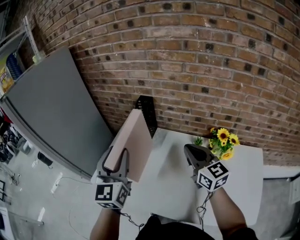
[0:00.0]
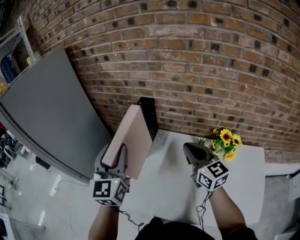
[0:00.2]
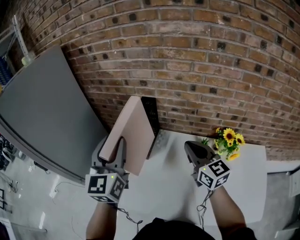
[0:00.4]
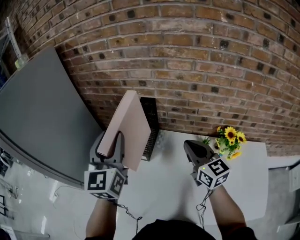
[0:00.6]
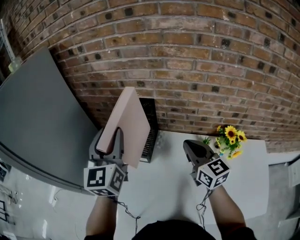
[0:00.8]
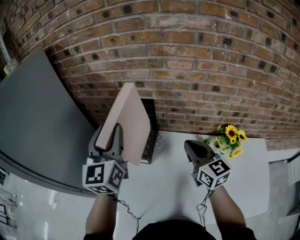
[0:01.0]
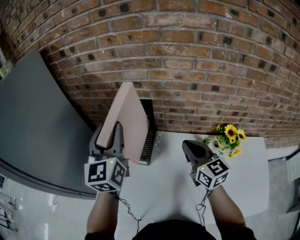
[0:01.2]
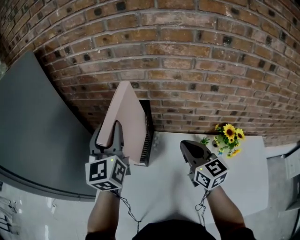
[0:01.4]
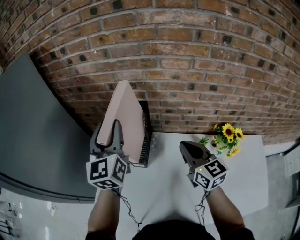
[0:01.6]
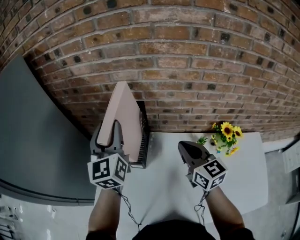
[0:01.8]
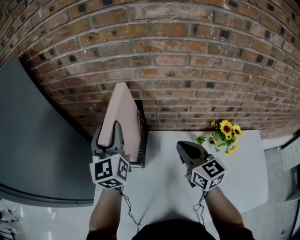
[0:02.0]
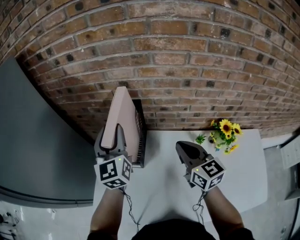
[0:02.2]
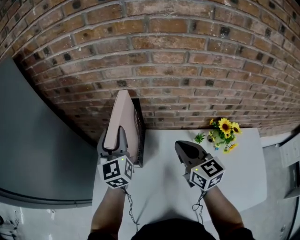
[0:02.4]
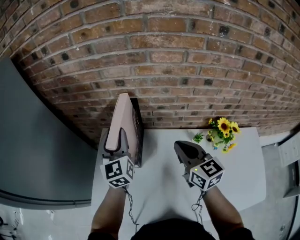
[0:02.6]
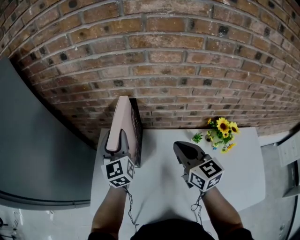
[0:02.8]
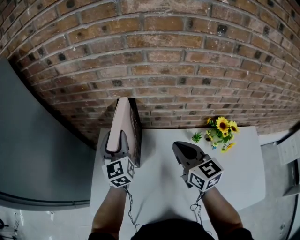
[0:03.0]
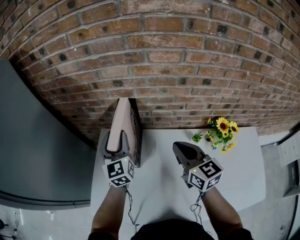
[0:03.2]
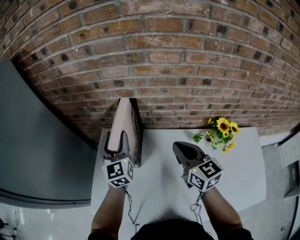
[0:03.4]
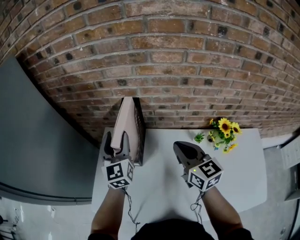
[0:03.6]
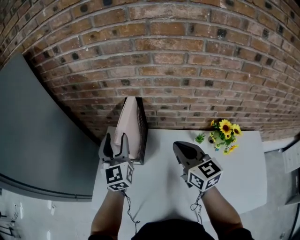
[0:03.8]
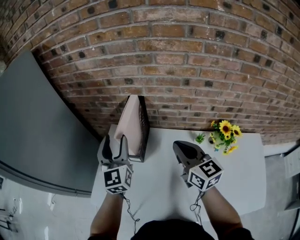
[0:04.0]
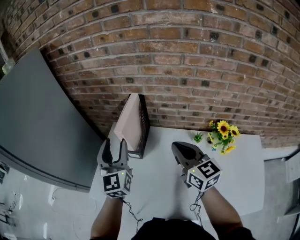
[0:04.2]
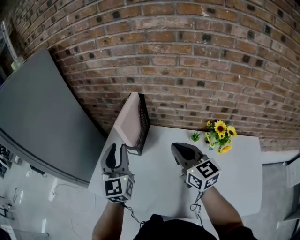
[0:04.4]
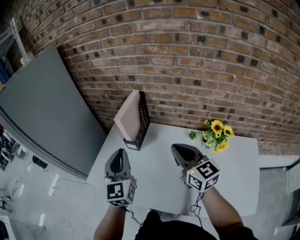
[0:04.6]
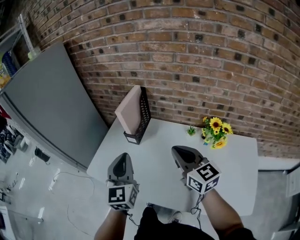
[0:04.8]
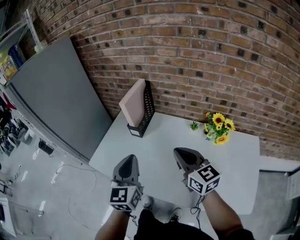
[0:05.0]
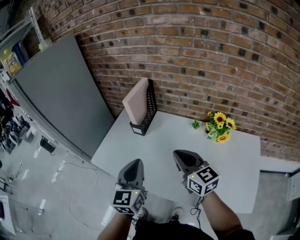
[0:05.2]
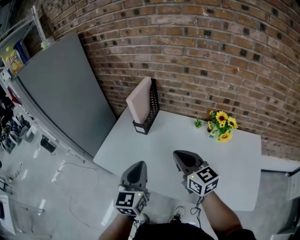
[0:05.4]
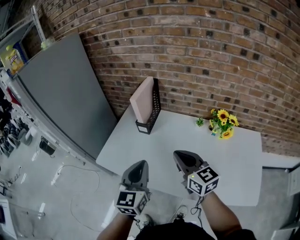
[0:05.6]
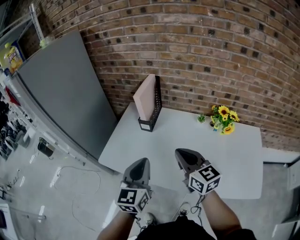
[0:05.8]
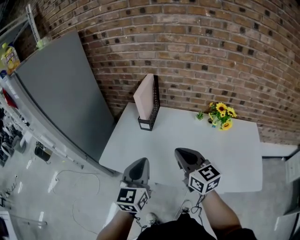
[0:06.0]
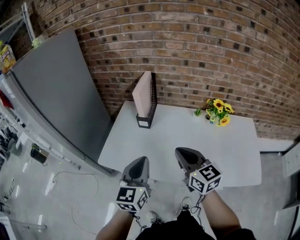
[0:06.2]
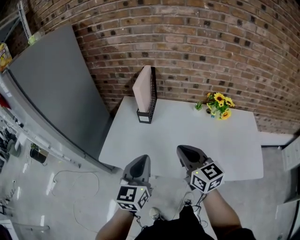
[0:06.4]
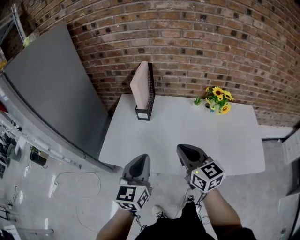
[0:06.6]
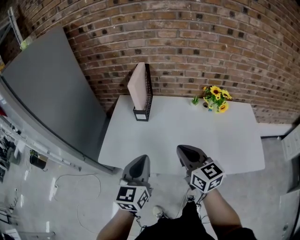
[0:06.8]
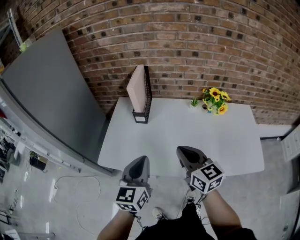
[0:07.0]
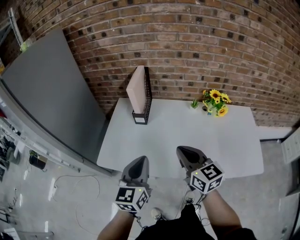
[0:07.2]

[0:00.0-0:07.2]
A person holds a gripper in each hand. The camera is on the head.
0:00.0 to 0:01.4: The right gripper heads forward and to the left, covering approximately 15 cm. The left gripper moves forward, roughly 25 cm.
0:01.4 to 0:02.8: The left gripper shifts about 15 cm downward and forward.
0:02.8 to 0:04.4: The right gripper travels backward by roughly 10 cm; the left gripper moves backward, about 20 cm.
0:04.4 to 0:05.8: The right gripper goes roughly 20 cm backward and to the left; the left gripper shifts approximately 25 cm backward, and closes.
0:05.8 to 0:07.2: The left gripper changes place by some 5 cm.

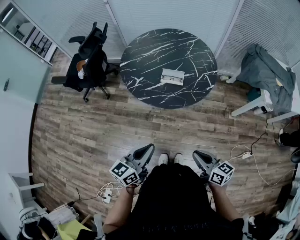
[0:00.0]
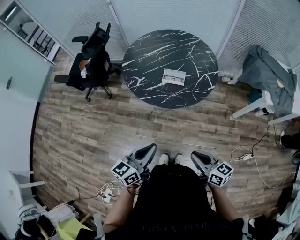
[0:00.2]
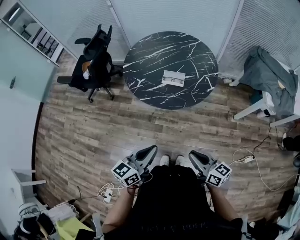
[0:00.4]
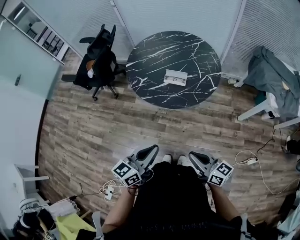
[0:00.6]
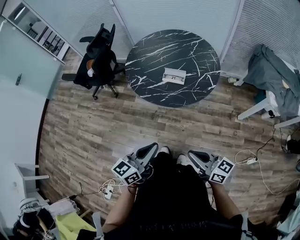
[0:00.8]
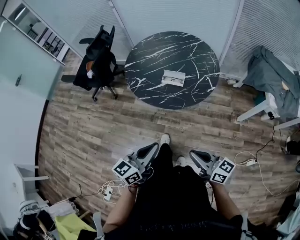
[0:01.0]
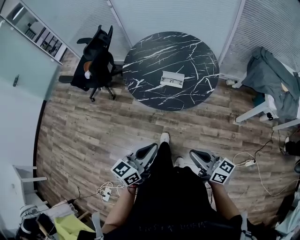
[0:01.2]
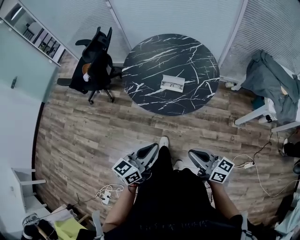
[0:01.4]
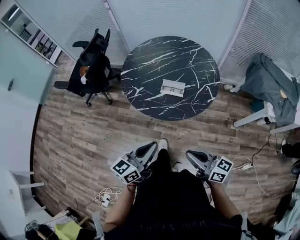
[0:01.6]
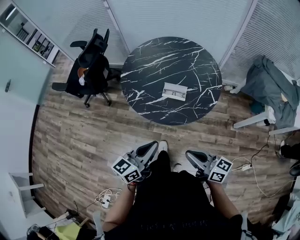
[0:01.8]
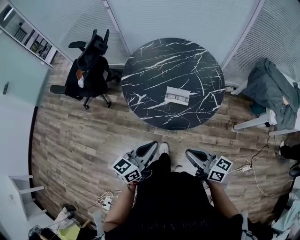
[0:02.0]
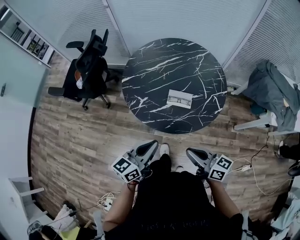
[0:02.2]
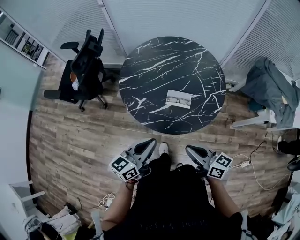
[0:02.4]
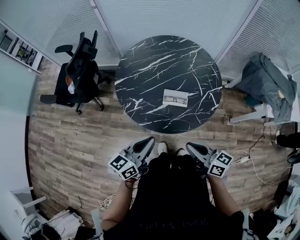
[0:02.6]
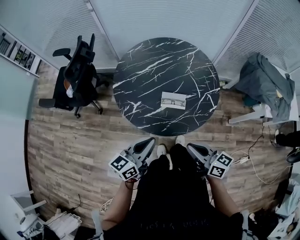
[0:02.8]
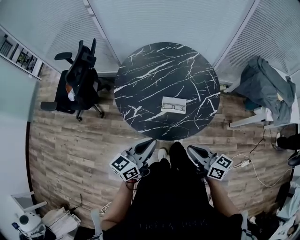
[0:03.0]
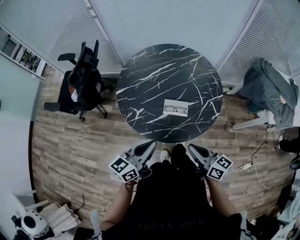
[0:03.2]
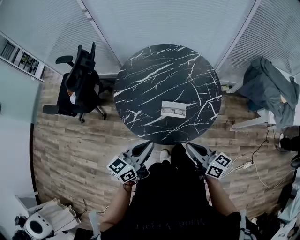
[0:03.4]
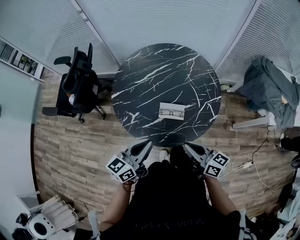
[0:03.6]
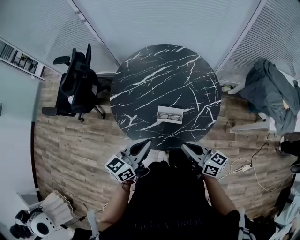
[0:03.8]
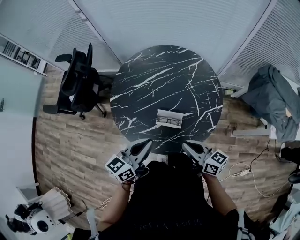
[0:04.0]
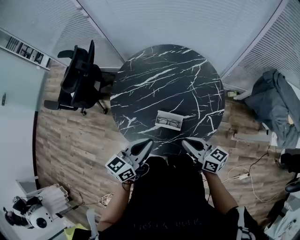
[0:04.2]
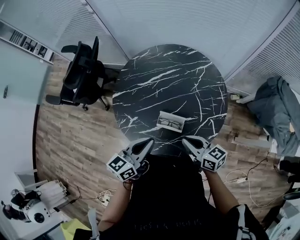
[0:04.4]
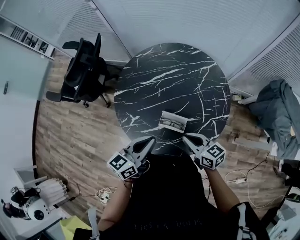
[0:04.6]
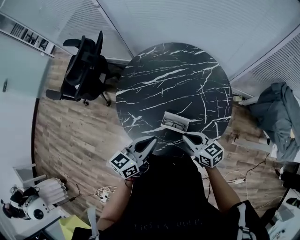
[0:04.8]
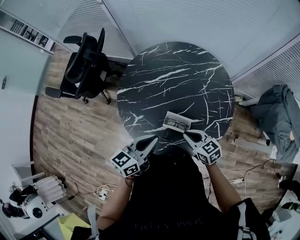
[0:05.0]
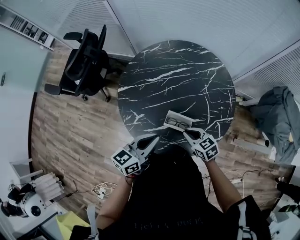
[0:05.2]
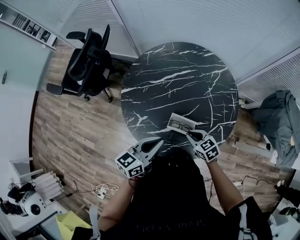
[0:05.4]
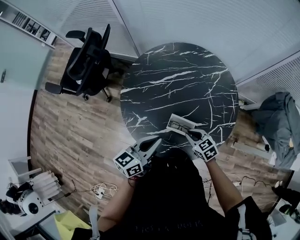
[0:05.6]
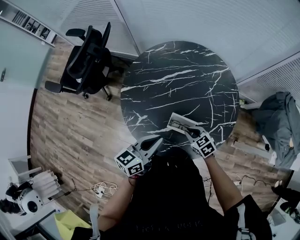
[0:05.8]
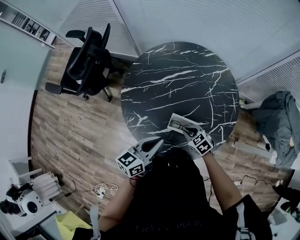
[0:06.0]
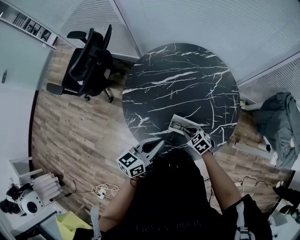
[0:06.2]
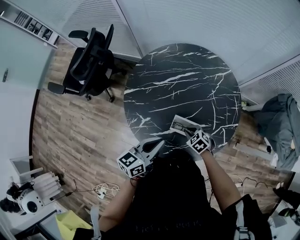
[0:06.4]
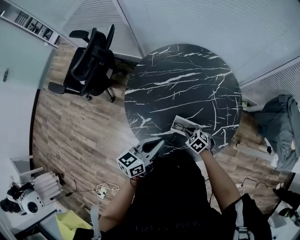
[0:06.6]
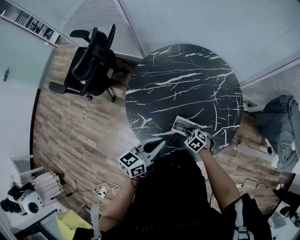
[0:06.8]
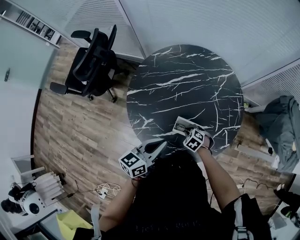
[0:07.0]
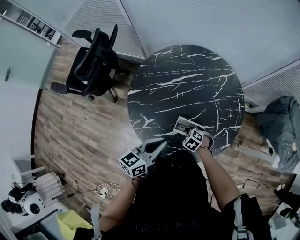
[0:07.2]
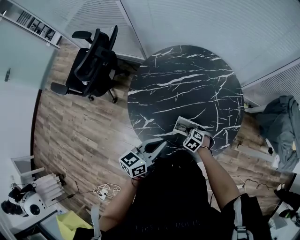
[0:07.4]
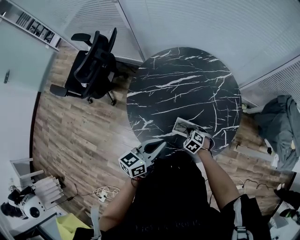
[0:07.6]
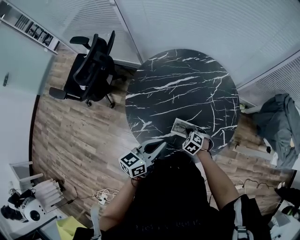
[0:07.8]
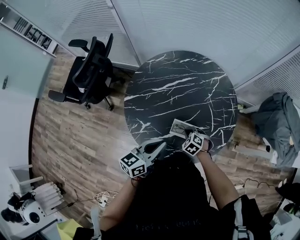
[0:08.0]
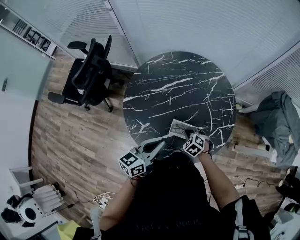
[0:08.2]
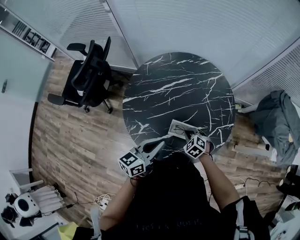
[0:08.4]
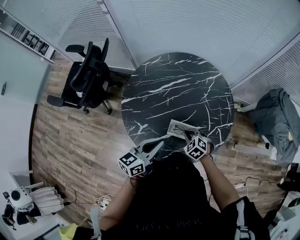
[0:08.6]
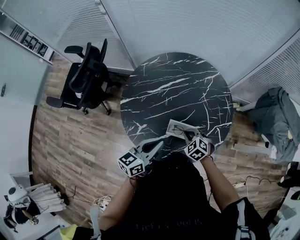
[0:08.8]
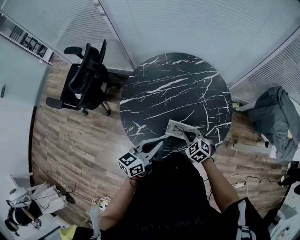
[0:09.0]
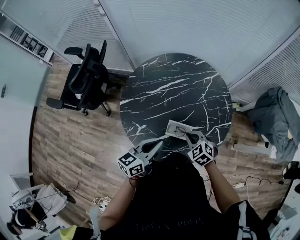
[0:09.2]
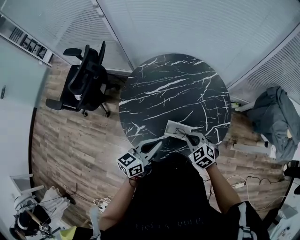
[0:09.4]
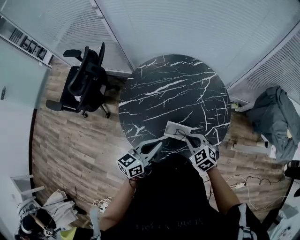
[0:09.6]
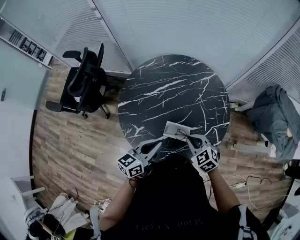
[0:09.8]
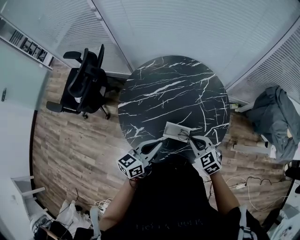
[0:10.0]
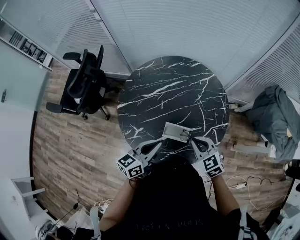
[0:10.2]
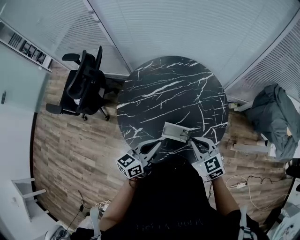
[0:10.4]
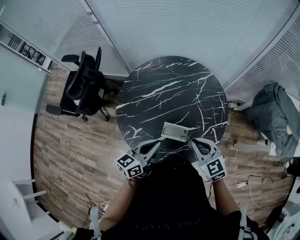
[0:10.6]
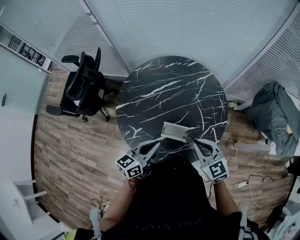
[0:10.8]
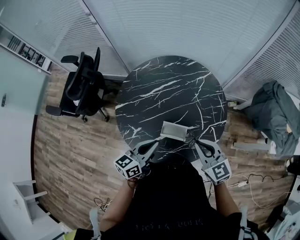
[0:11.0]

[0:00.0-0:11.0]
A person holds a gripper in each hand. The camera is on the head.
0:00.0 to 0:01.6: The right gripper shifts approximately 10 cm forward and upward. Meanwhile the left gripper travels forward by roughly 5 cm.
0:01.6 to 0:03.2: The two grippers go about 20 cm forward.
0:03.2 to 0:04.8: The right gripper is displaced forward and downward by some 20 cm, and turns by roughly 30 degrees; the left gripper shifts some 15 cm forward and to the right.
0:04.8 to 0:06.2: The right gripper goes about 15 cm downward, and points its fingers about 30 degrees further downward.
0:06.2 to 0:07.8: The right gripper swivels about 20 degrees.
0:07.8 to 0:09.4: The right gripper travels upward by roughly 15 cm.
0:09.4 to 0:11.0: The right gripper shifts about 15 cm upward and to the right, and turns by some 30 degrees.

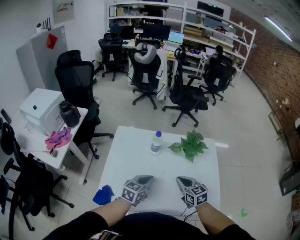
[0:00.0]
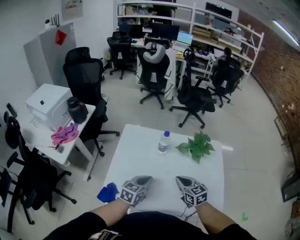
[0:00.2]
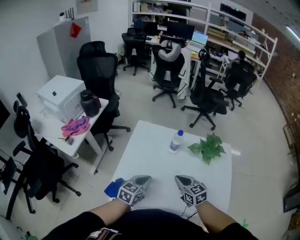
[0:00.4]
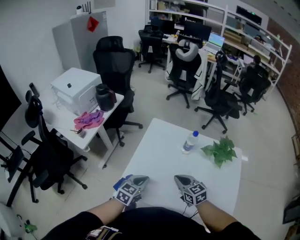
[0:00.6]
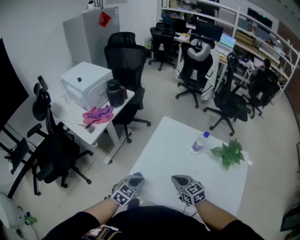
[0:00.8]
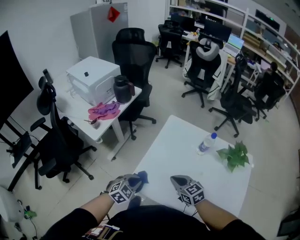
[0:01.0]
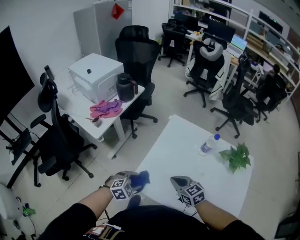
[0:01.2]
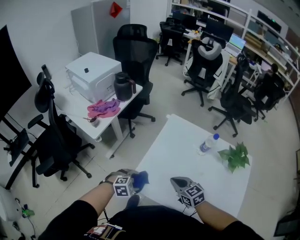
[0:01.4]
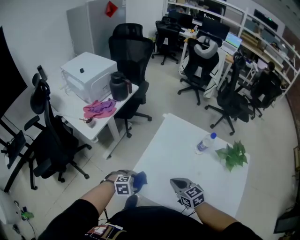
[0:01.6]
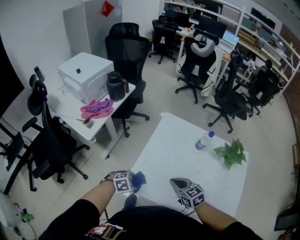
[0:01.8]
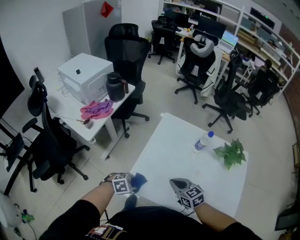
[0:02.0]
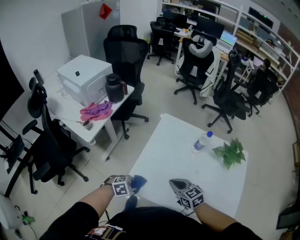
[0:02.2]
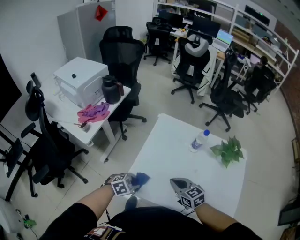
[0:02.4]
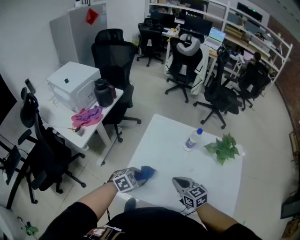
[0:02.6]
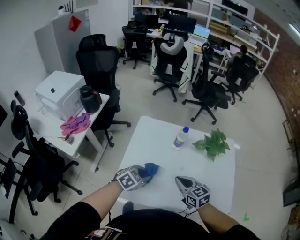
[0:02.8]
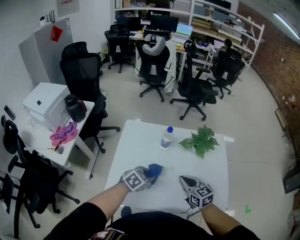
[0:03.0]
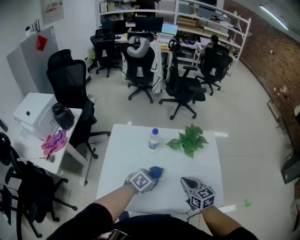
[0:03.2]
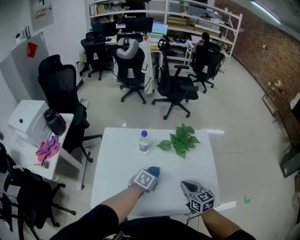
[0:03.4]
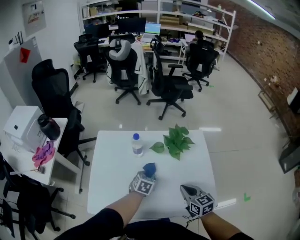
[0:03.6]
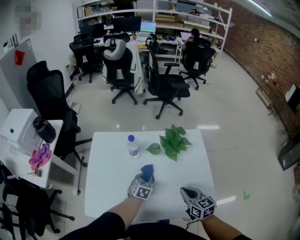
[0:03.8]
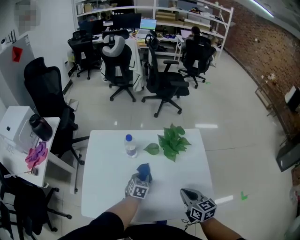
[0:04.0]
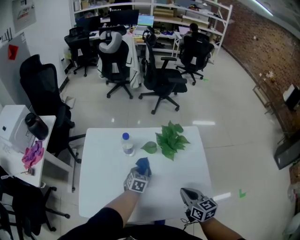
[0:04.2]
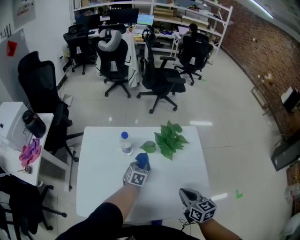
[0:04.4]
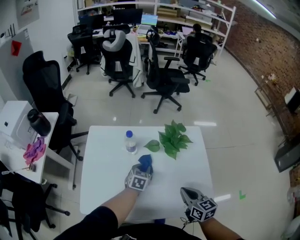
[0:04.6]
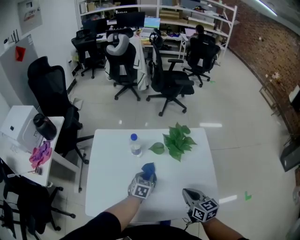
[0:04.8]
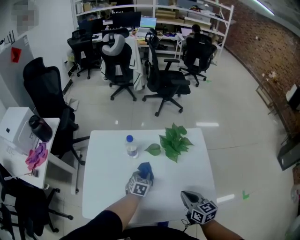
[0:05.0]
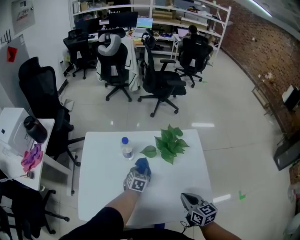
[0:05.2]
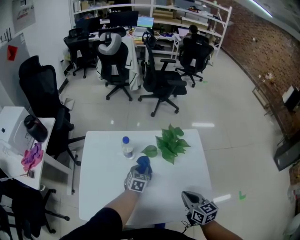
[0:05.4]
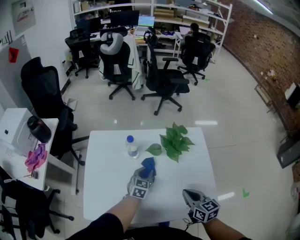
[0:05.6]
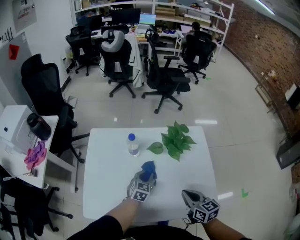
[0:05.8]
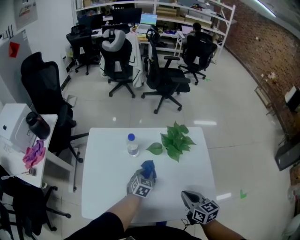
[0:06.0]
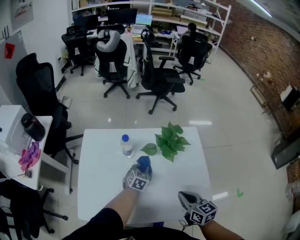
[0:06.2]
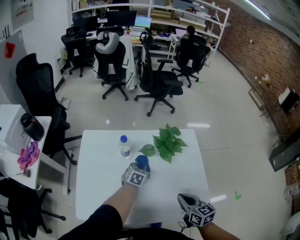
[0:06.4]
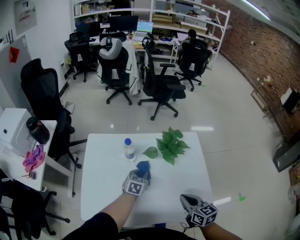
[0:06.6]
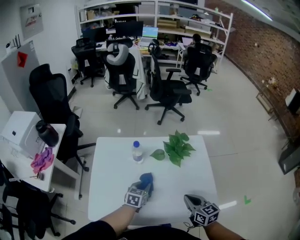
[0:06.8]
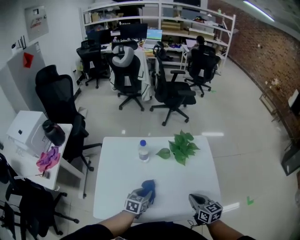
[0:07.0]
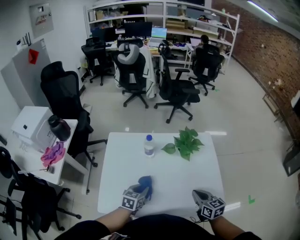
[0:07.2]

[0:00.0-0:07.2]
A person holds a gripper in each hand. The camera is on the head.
0:00.0 to 0:01.4: The left gripper is displaced to the left and downward by some 30 cm, tips its fingers downward by roughly 40 degrees, and opens, while the right gripper travels to the left by some 25 cm, and changes its angle by approximately 30 degrees.
0:01.4 to 0:02.8: The right gripper shifts by about 15 cm, and rotates roughly 20 degrees, while the left gripper shifts by roughly 20 cm, swivels approximately 20 degrees, and closes.
0:02.8 to 0:04.4: The left gripper goes some 30 cm to the right, forward and downward, and turns by approximately 20 degrees. Meanwhile the right gripper heads to the right, covering approximately 25 cm, and rotates roughly 30 degrees.
0:04.4 to 0:05.8: The left gripper moves forward and backward over roughly 5 cm, changing direction 2 times.
0:05.8 to 0:07.2: The left gripper shifts about 15 cm backward, to the left and upward.
